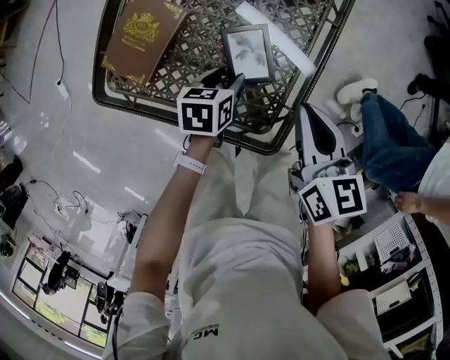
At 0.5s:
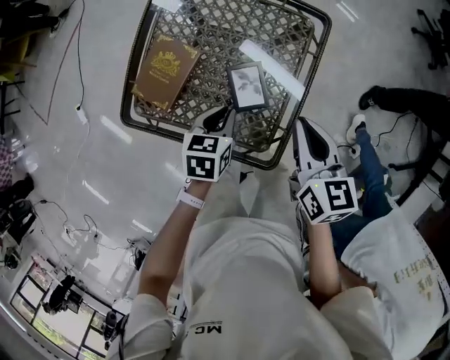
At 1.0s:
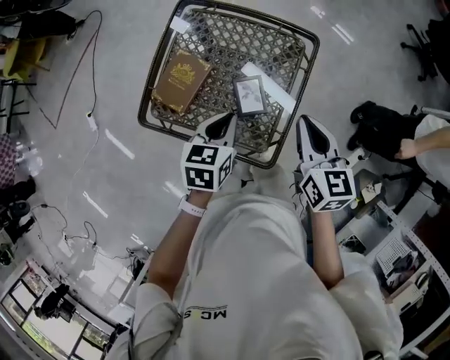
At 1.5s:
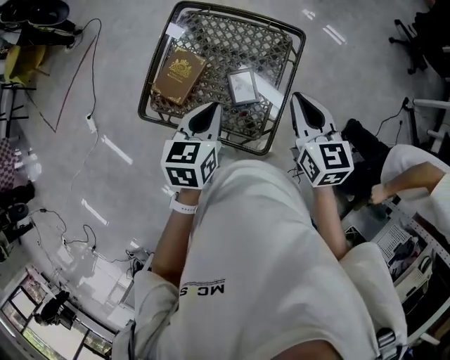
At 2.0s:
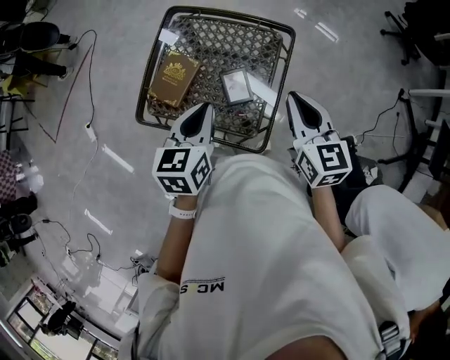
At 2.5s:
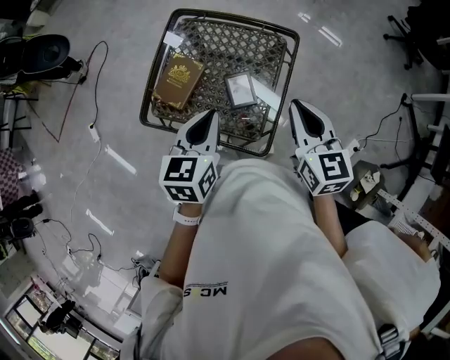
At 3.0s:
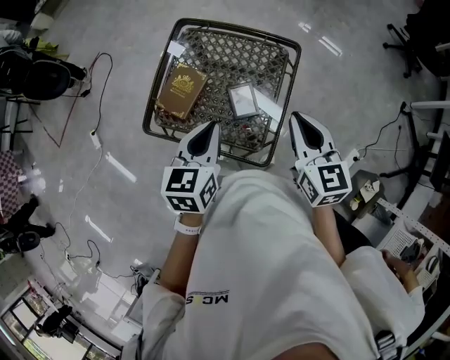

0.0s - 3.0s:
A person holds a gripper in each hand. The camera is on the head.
0.0s - 1.5s: The right gripper shifts roughly 20 cm upward. The left gripper travels upward by some 35 cm, rotates some 30 degrees, and closes its fingers.
1.5s - 3.0s: The grippers make only small movements.

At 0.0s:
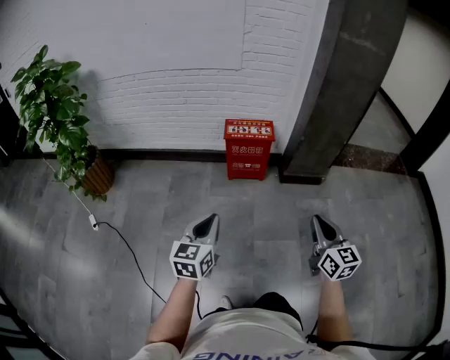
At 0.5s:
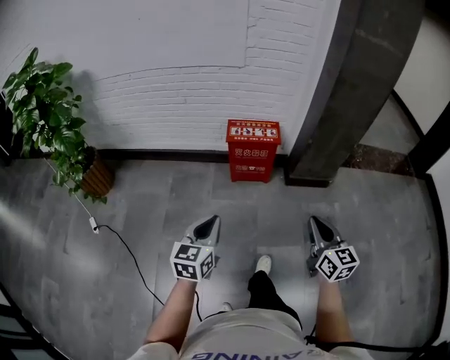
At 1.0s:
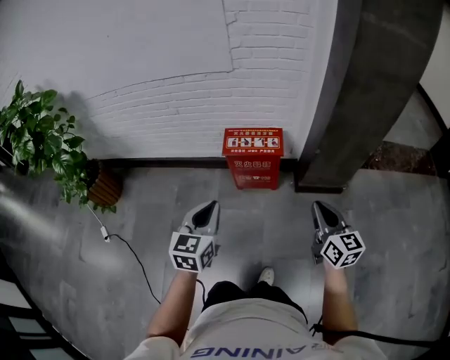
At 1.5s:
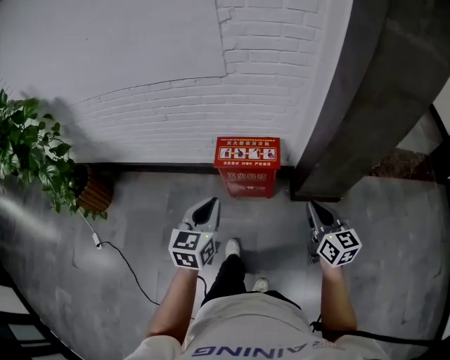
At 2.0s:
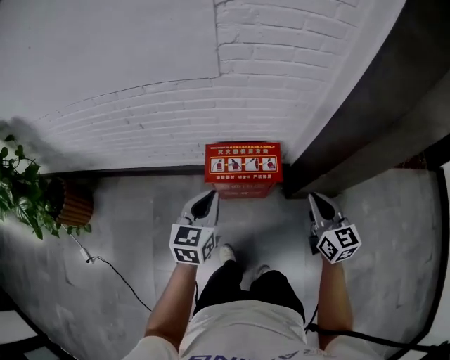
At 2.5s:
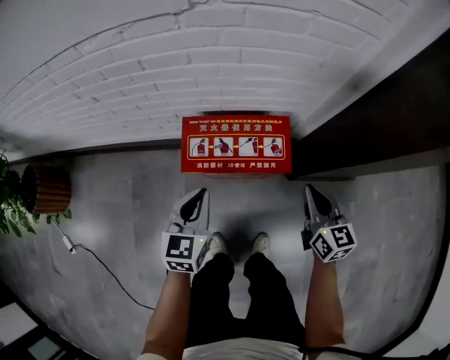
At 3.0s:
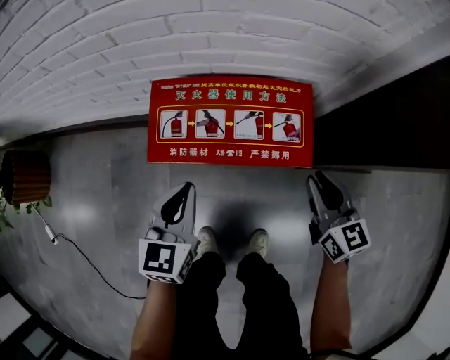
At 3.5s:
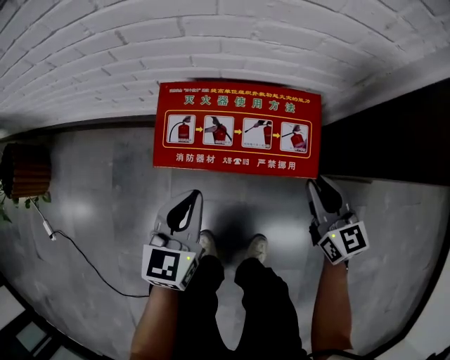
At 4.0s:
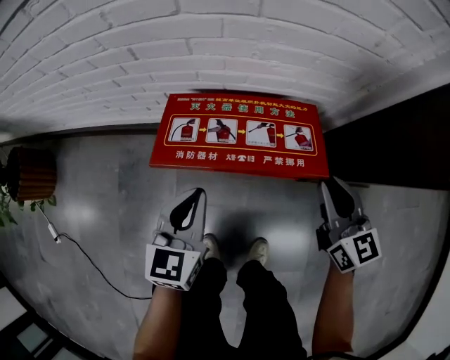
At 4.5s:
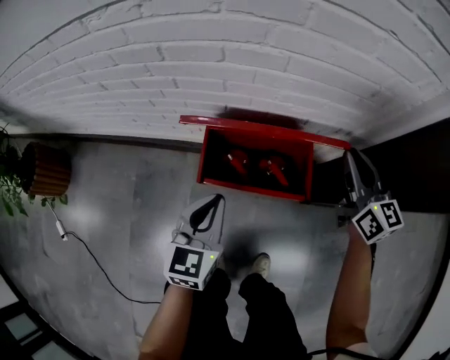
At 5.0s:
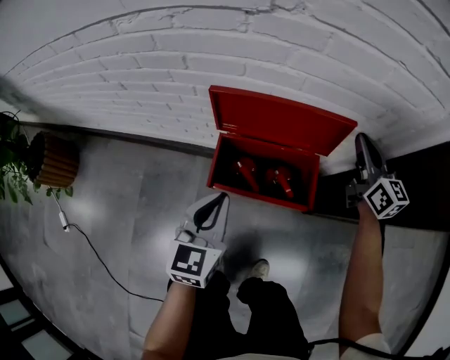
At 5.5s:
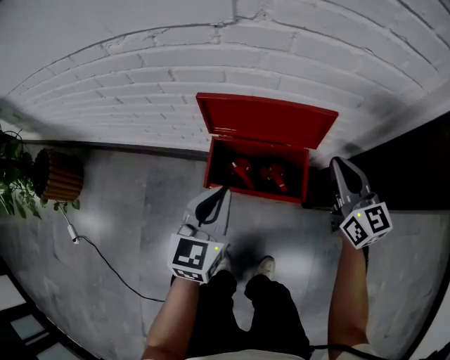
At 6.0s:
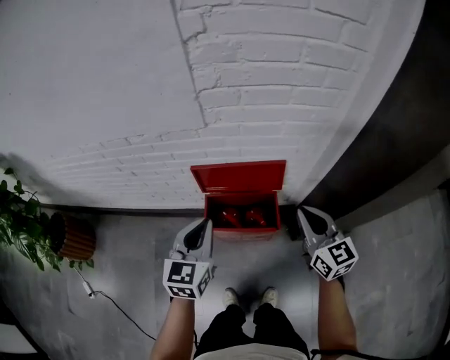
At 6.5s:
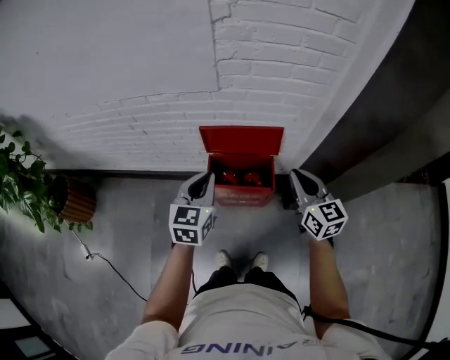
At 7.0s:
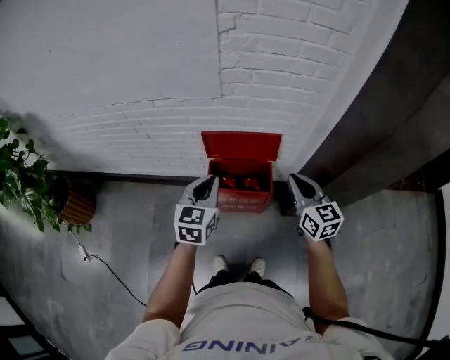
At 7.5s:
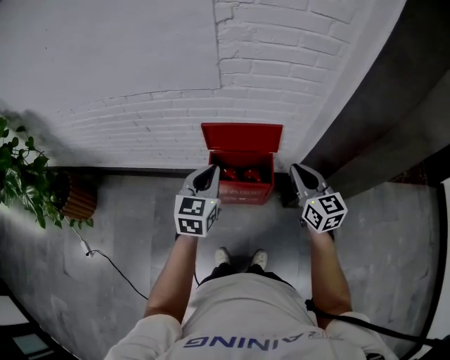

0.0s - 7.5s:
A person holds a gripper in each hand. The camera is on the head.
0.0s - 2.0s: The pair of grippers is taken forward, some 60 cm.
2.0s - 4.0s: The left gripper is displaced downward by roughly 25 cm, while the right gripper is displaced downward and forward by about 25 cm.
4.0s - 5.5s: The left gripper shifts roughly 10 cm upward. The right gripper goes some 15 cm upward and forward.
5.5s - 7.5s: The right gripper moves upward and backward, some 25 cm. Meanwhile the left gripper is displaced upward by about 20 cm.

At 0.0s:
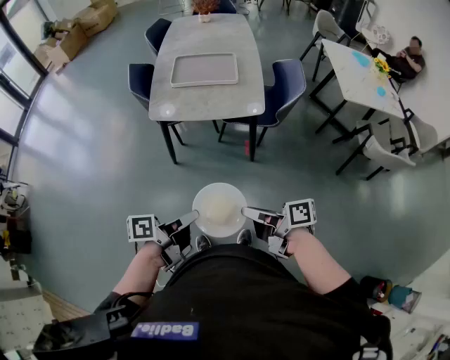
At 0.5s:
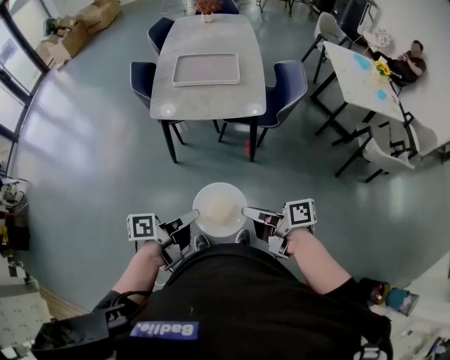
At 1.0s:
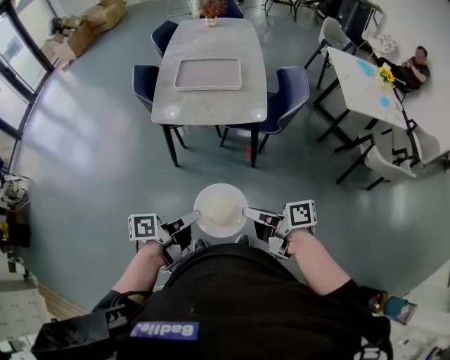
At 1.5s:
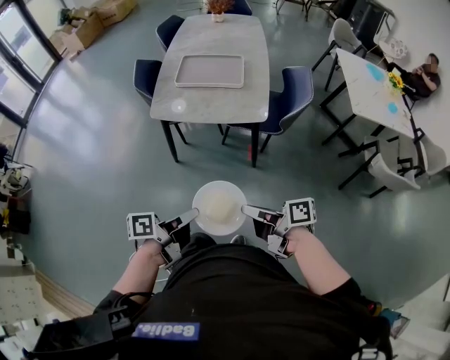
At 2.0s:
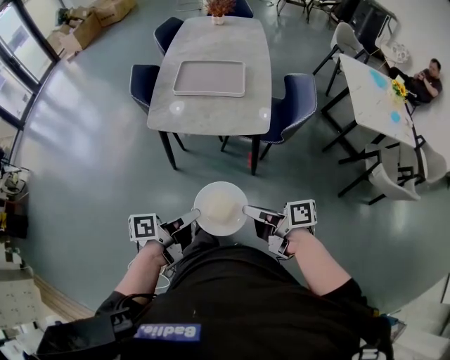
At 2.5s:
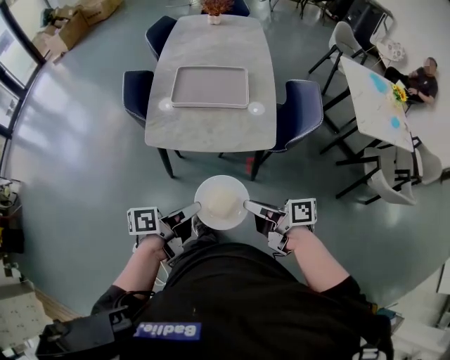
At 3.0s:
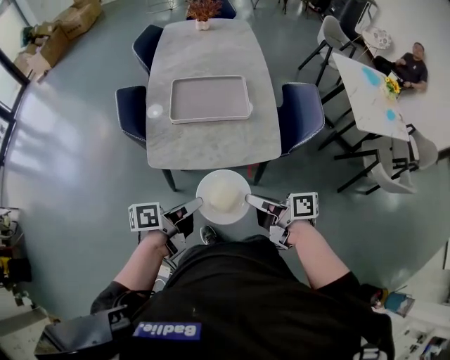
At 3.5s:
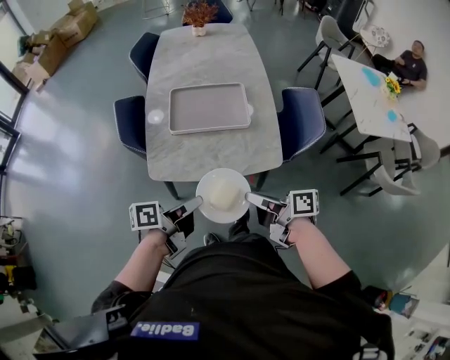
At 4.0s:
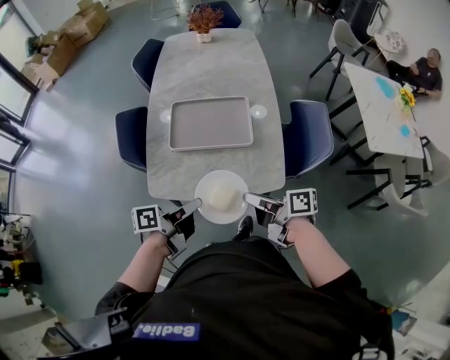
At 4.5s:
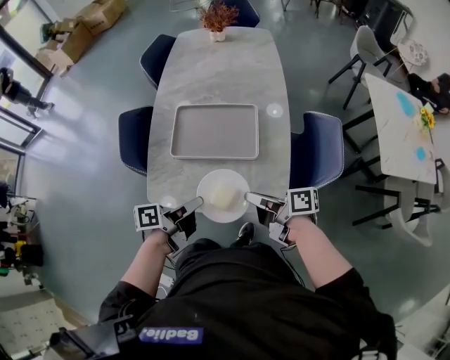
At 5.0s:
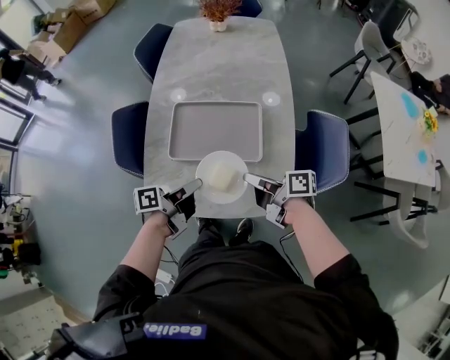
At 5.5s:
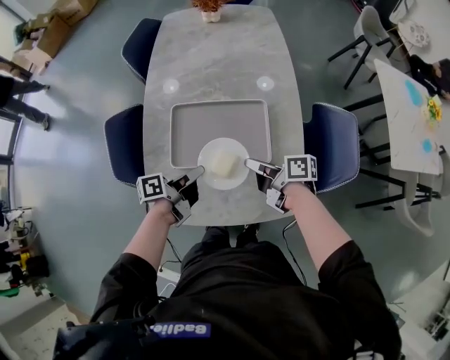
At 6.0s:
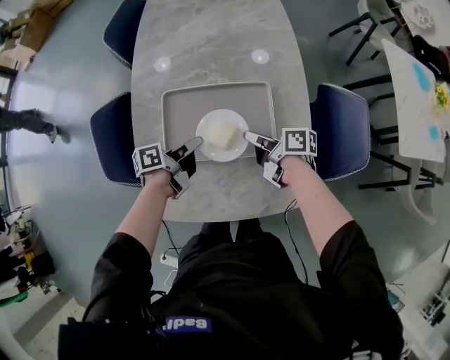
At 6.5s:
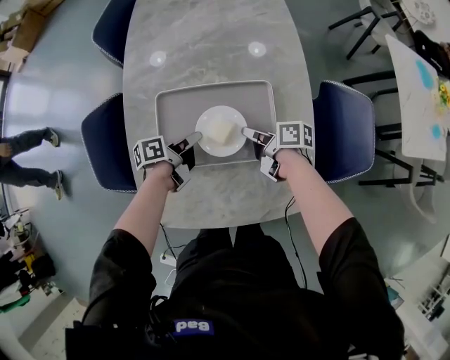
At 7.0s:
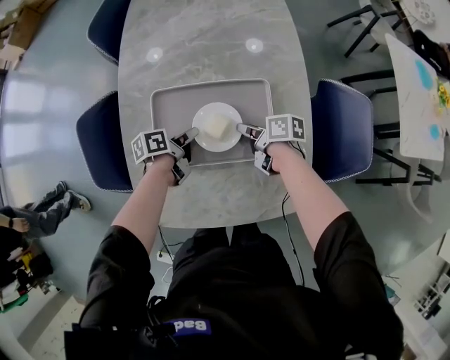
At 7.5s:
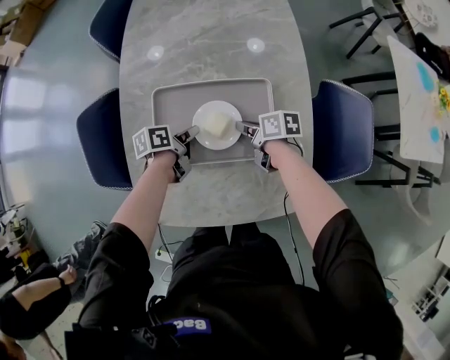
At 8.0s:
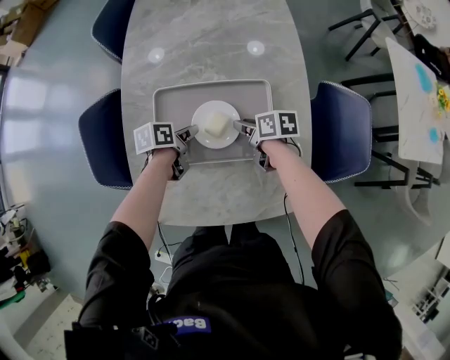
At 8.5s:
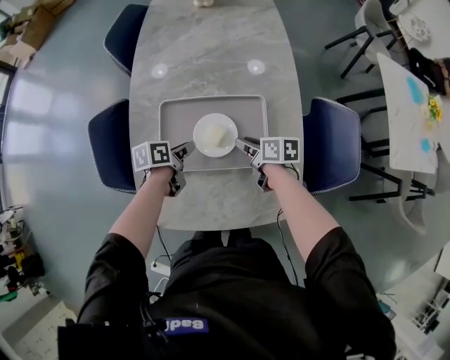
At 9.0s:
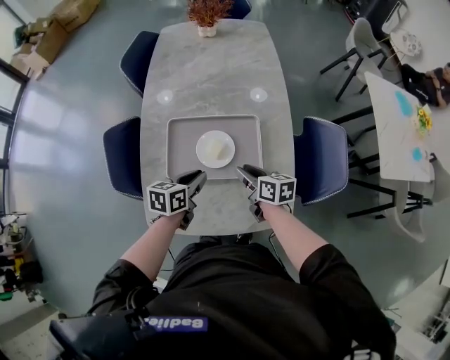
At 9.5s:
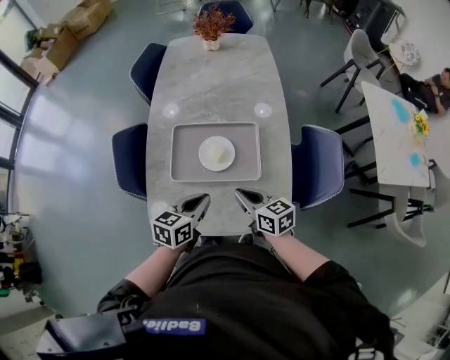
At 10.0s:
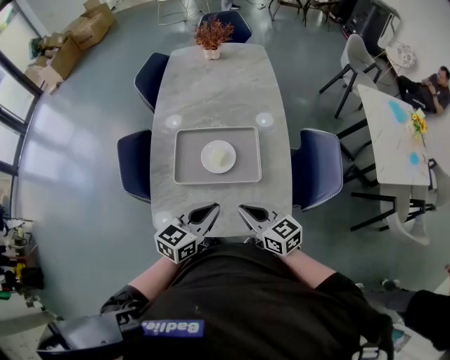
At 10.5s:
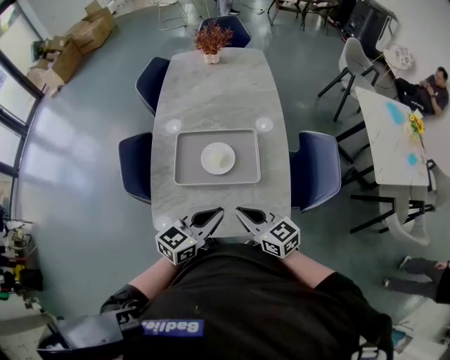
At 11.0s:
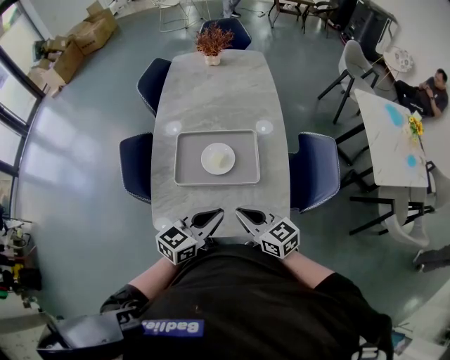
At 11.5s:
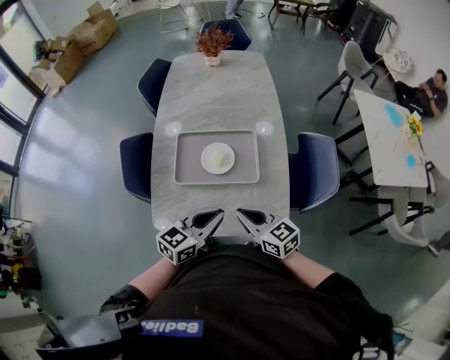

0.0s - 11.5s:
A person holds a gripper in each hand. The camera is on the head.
0.0s - 2.0s: The right gripper shifts by some 10 cm.
2.0s - 4.0s: The right gripper moves roughly 35 cm.
4.0s - 6.0s: The right gripper changes place by roughly 35 cm.
6.0s - 7.5s: The right gripper is displaced downward by about 10 cm, and swivels some 20 degrees.
7.5s - 9.5s: The right gripper goes about 20 cm upward, turns by approximately 40 degrees, and opens and closes again.
9.5s - 11.5s: The right gripper ends up about 10 cm from where it was.

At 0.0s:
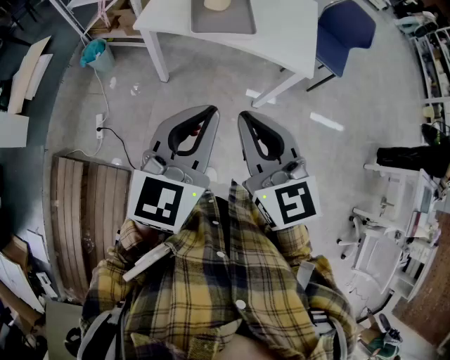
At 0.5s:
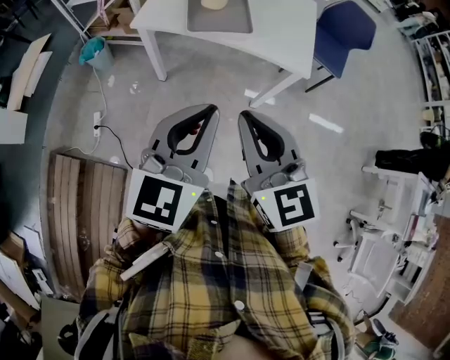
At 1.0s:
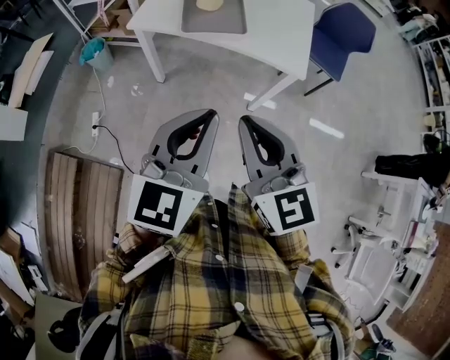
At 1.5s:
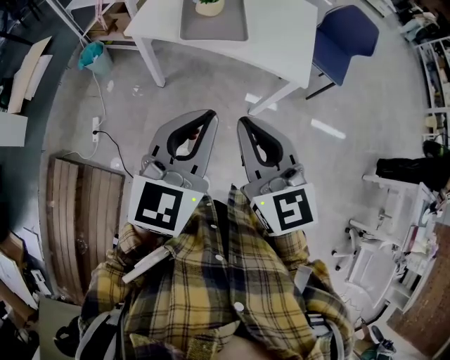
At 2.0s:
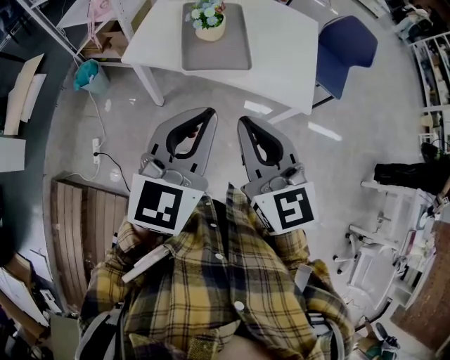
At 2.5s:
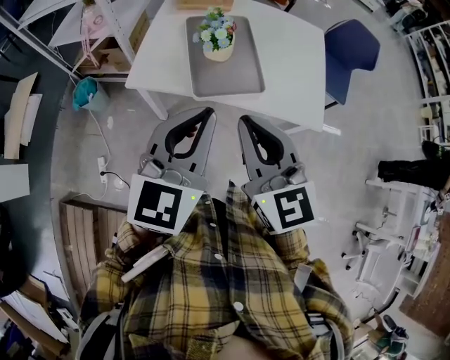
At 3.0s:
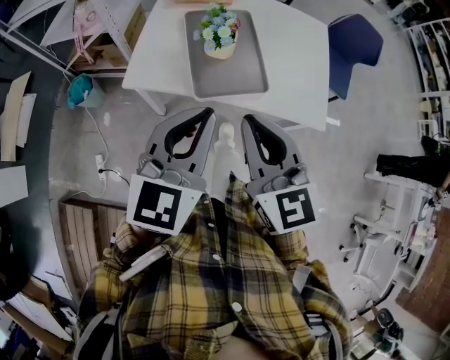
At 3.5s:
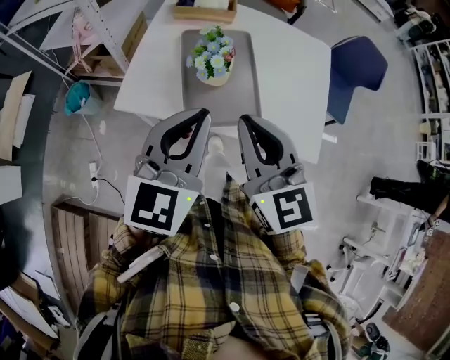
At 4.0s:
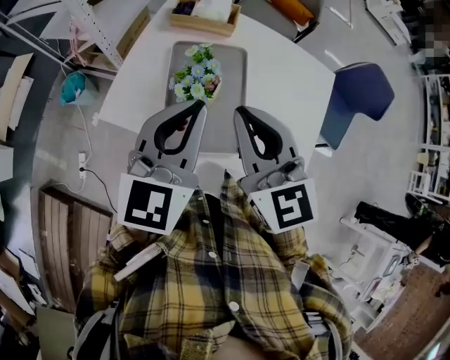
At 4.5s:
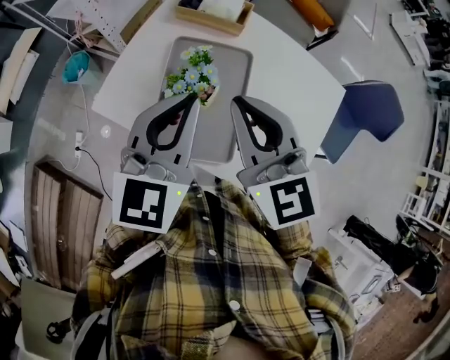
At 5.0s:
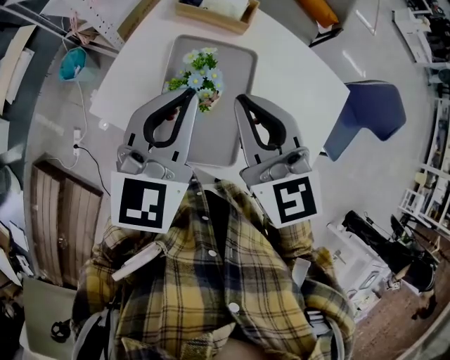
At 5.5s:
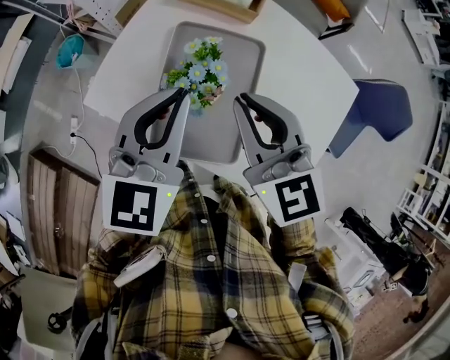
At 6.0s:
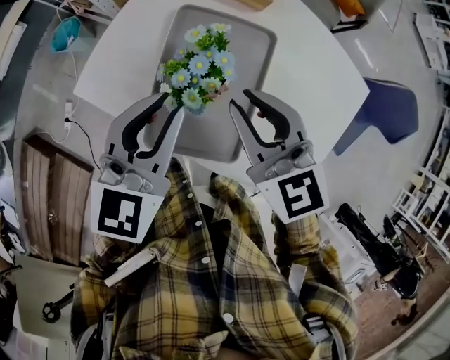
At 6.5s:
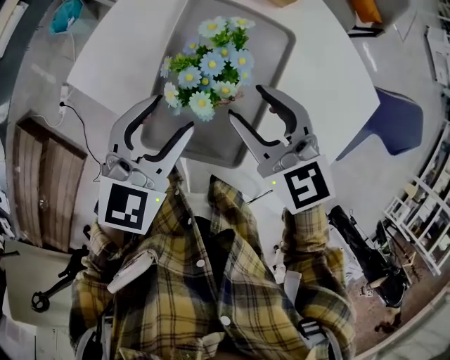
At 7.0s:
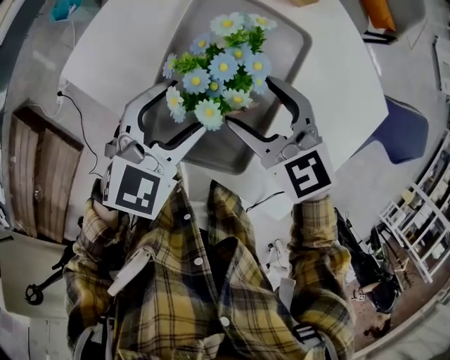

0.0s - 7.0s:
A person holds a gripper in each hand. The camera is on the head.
0.0s - 2.0s: The two grippers go about 15 cm forward.
2.0s - 3.5s: The grippers both shift forward by some 20 cm.
3.5s - 5.0s: Both grippers travel together forward, some 20 cm.
5.0s - 7.0s: The grippers both shift downward by some 20 cm. The right gripper swivels some 40 degrees, and opens its fingers. The left gripper turns by roughly 20 degrees, and opens.
